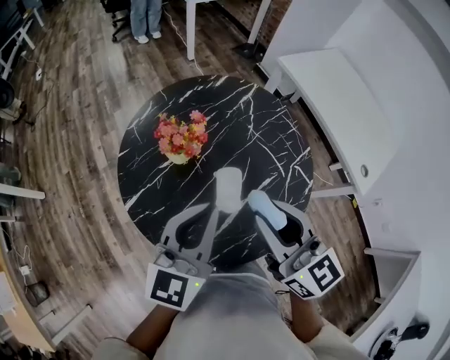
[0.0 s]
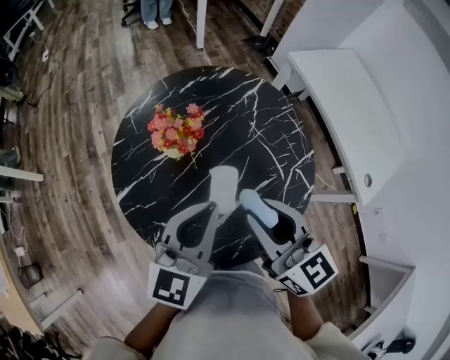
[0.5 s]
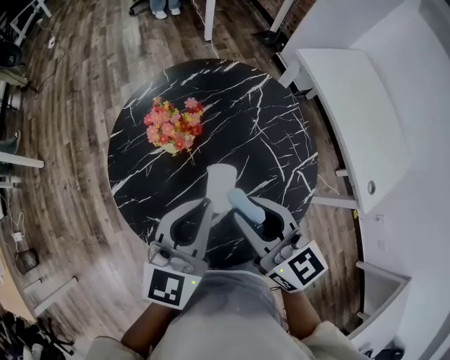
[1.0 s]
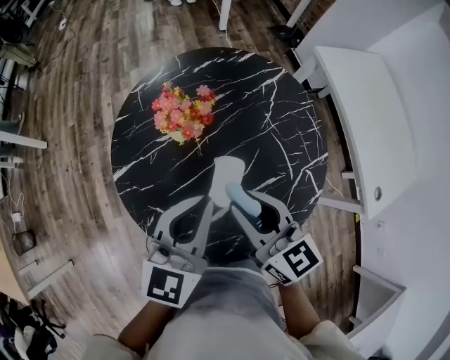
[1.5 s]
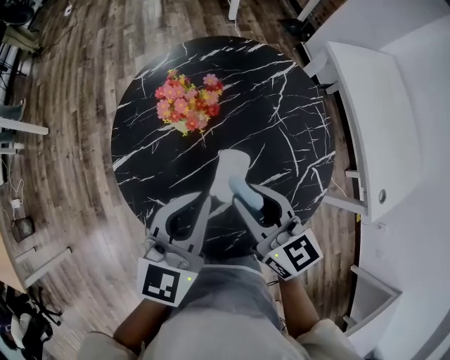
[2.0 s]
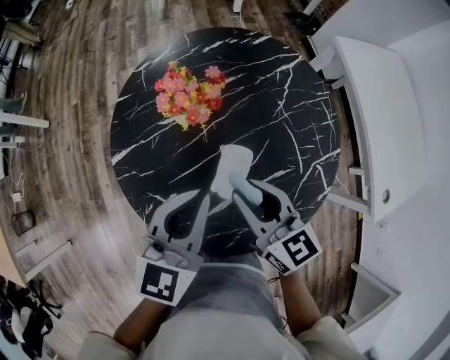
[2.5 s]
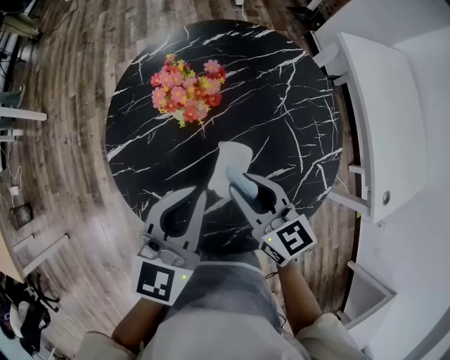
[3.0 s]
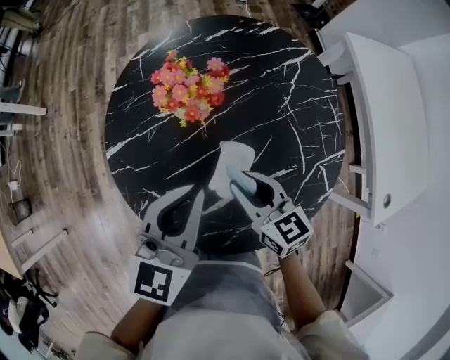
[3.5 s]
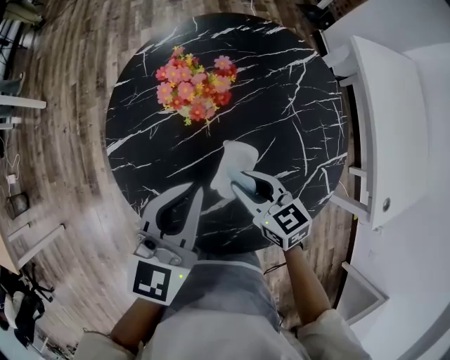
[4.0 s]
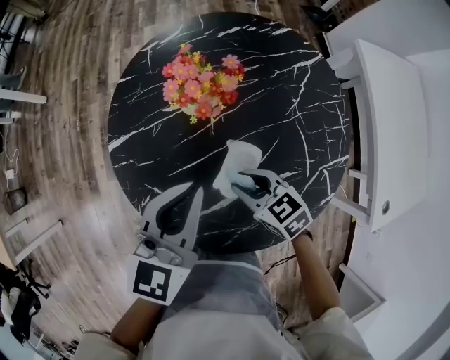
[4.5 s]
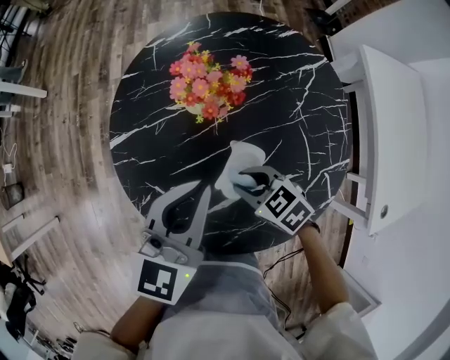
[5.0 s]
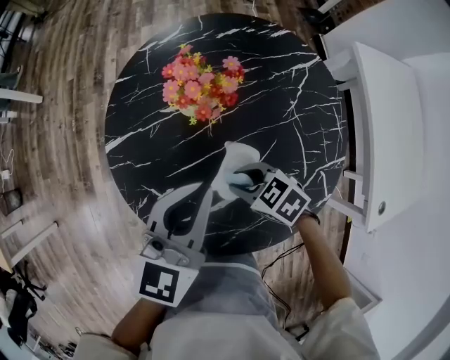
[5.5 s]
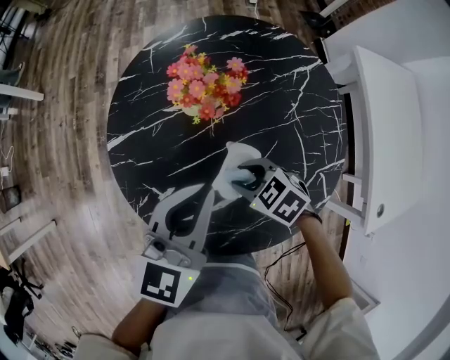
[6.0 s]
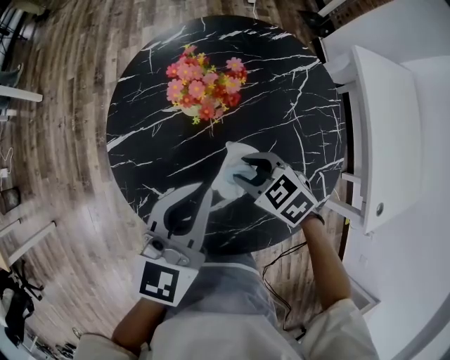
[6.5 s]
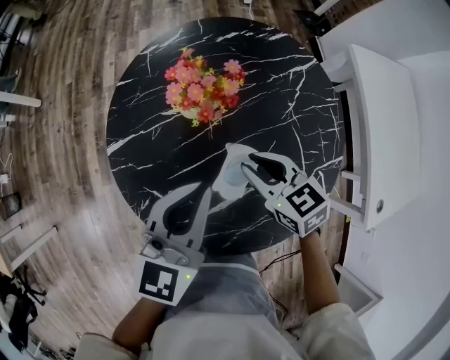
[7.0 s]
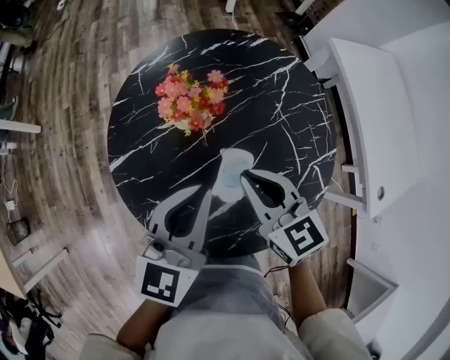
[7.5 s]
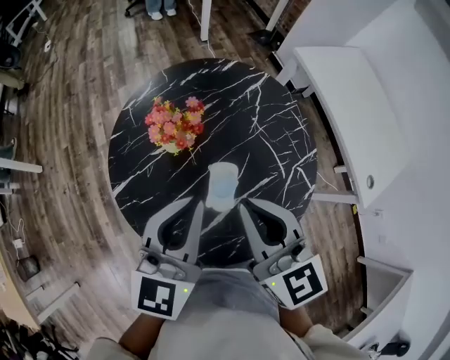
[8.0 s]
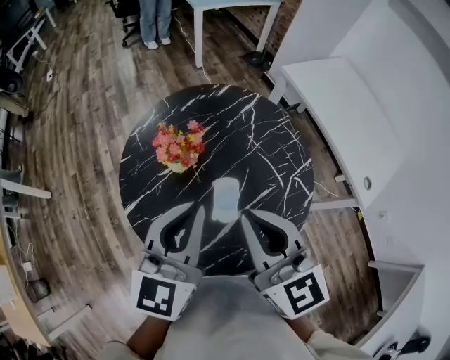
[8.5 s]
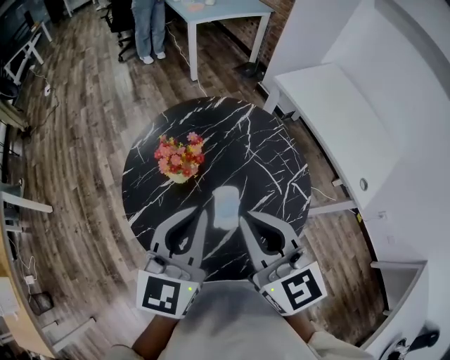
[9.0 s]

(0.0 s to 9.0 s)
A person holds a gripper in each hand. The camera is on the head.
0.0 s - 2.0 s: The left gripper shifts roughly 5 cm downward. Meanwhile the right gripper is displaced downward by about 15 cm, and changes its angle by some 20 degrees.
2.0 s - 4.5 s: The right gripper shifts some 15 cm downward, and changes its angle by about 40 degrees.
4.5 s - 7.0 s: The right gripper moves upward and forward, roughly 10 cm.
7.0 s - 9.0 s: The right gripper goes some 25 cm upward, angles its fingers upward, by approximately 30 degrees, and closes up; the left gripper moves upward, about 15 cm.

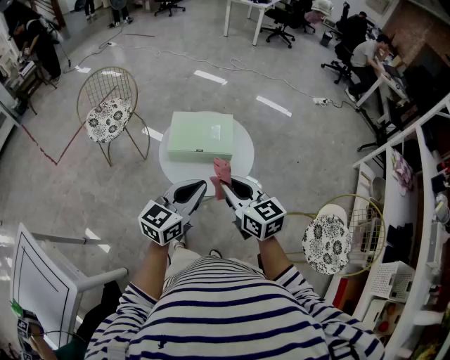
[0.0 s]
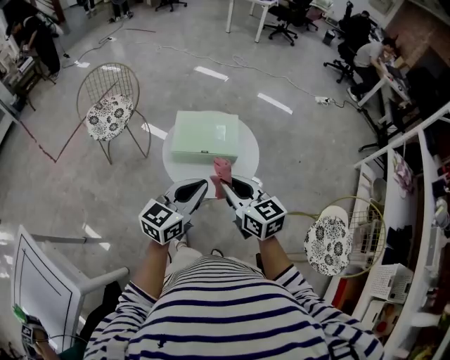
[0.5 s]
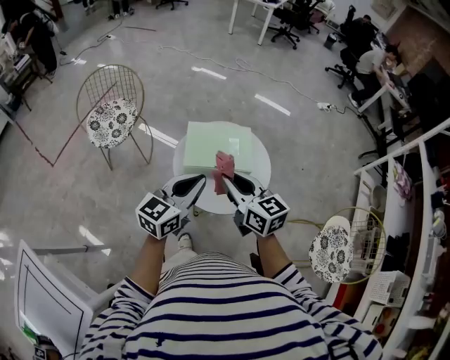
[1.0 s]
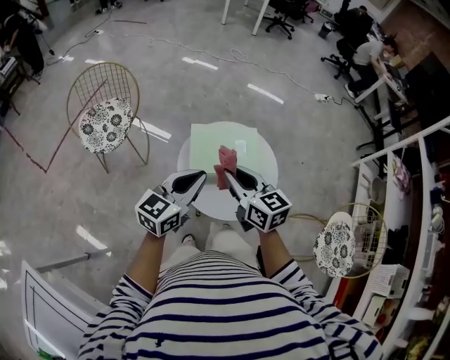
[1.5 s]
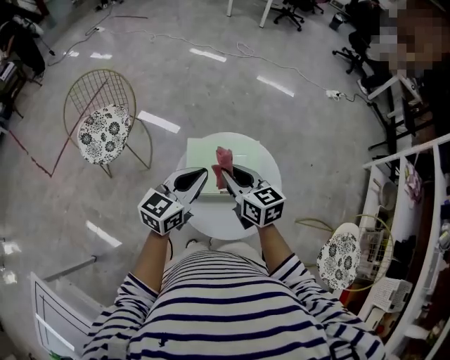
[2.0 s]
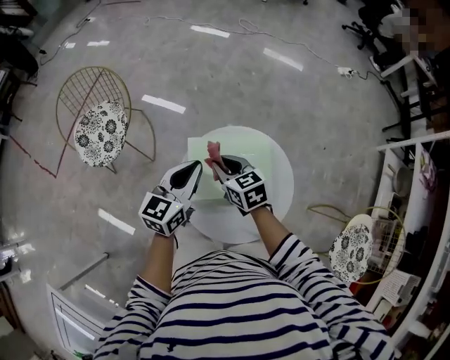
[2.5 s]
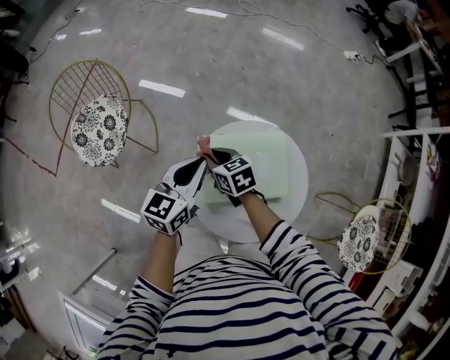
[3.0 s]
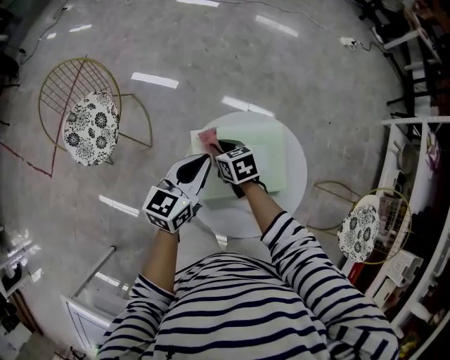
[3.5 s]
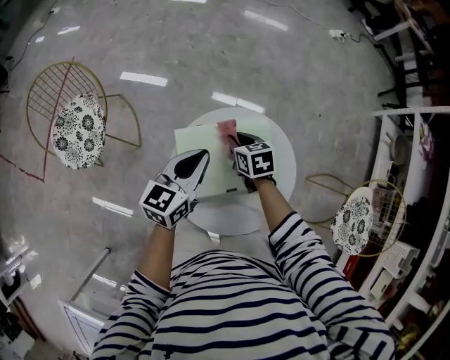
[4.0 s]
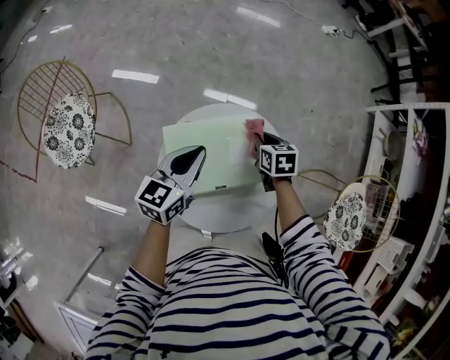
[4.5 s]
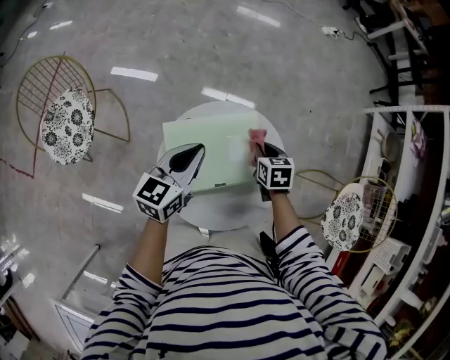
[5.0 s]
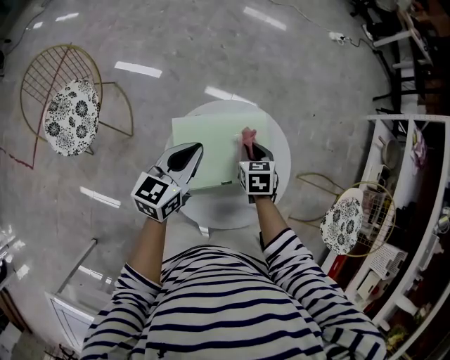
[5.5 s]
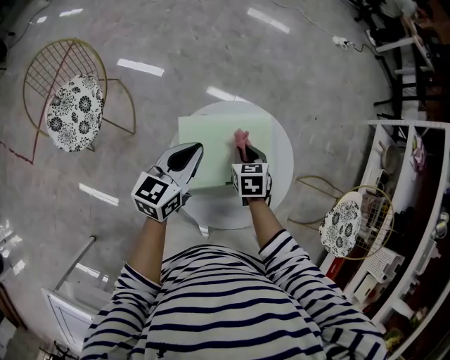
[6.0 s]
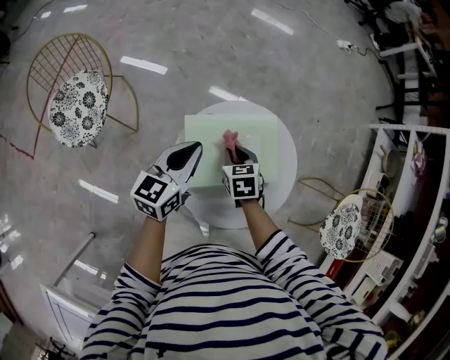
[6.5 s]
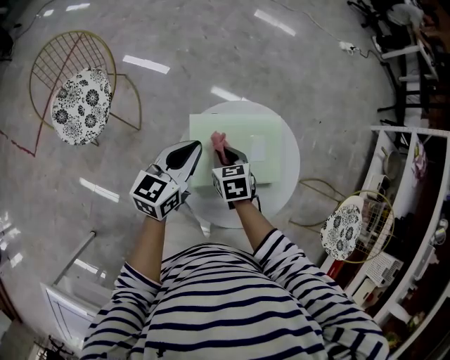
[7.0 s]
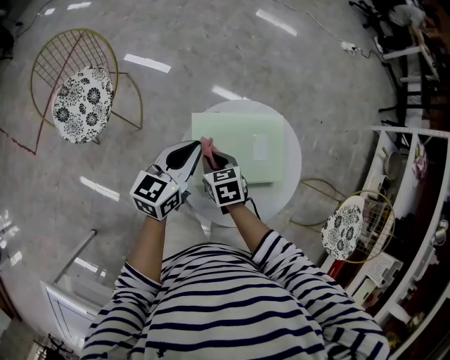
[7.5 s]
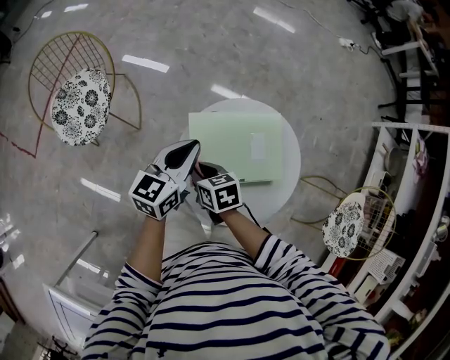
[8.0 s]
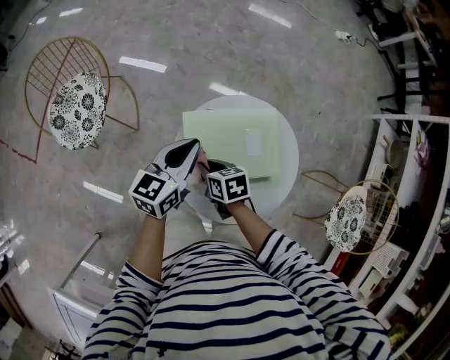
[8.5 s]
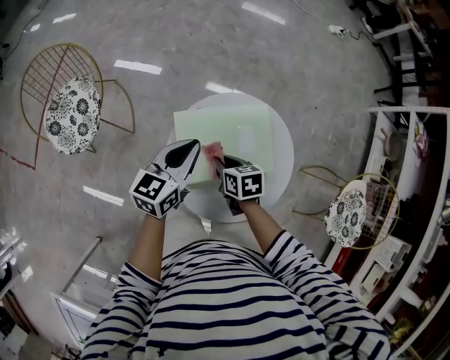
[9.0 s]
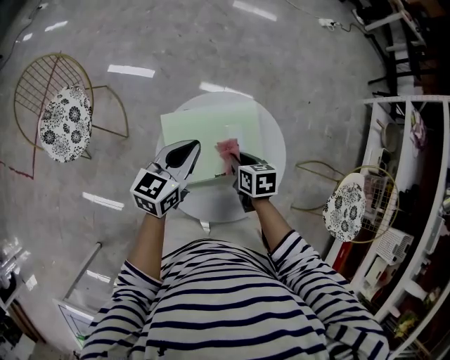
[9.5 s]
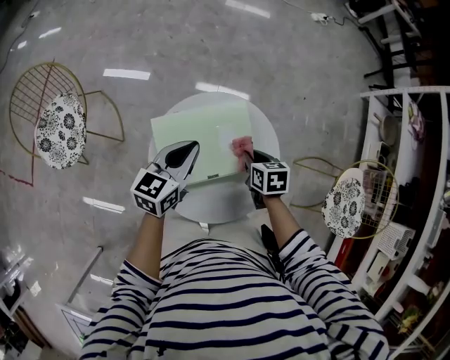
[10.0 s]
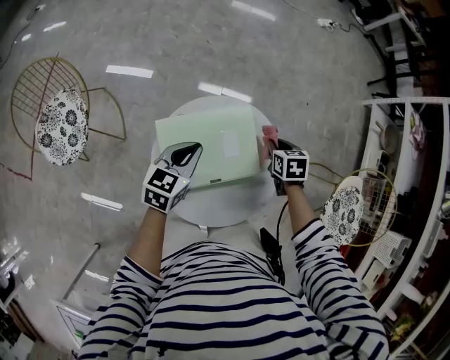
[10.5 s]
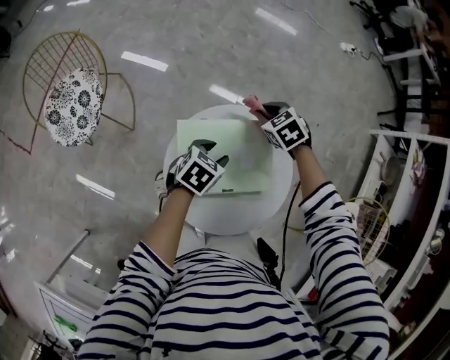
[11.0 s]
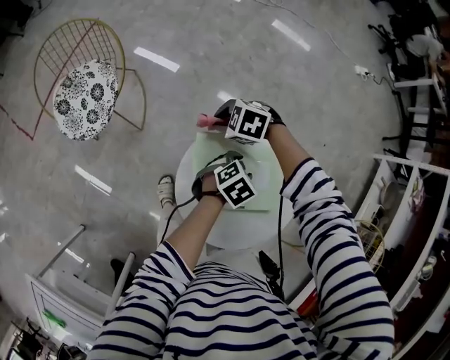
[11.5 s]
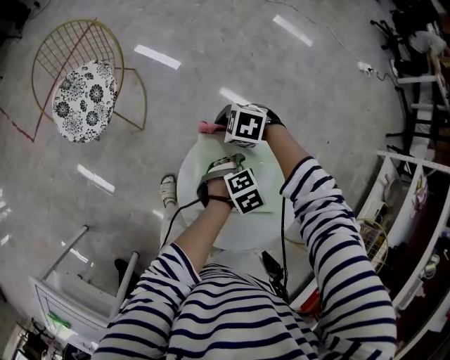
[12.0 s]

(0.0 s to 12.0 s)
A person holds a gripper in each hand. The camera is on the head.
0.0 s - 2.0 s: Both grippers move forward and to the left, roughly 30 cm.
2.0 s - 4.0 s: The left gripper is displaced forward and downward by some 15 cm, while the right gripper goes some 25 cm downward and forward, and swivels roughly 30 degrees.
4.0 s - 6.0 s: The right gripper shifts some 5 cm backward, and reaches about 15 cm to the right, then returns.
6.0 s - 8.0 s: The right gripper travels to the left and backward by some 20 cm, and swivels about 30 degrees.
8.0 s - 10.0 s: The right gripper travels to the right by approximately 30 cm, and rotates some 20 degrees. The left gripper travels to the right by roughly 10 cm.
10.0 s - 12.0 s: The left gripper is displaced downward by roughly 15 cm, tilts its fingers some 40 degrees downward, and opens up, while the right gripper moves approximately 30 cm, and twists roughly 80 degrees counterclockwise, seen from behind.

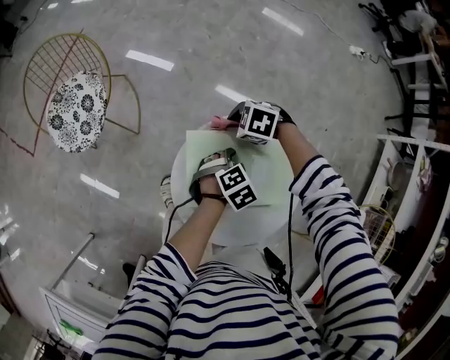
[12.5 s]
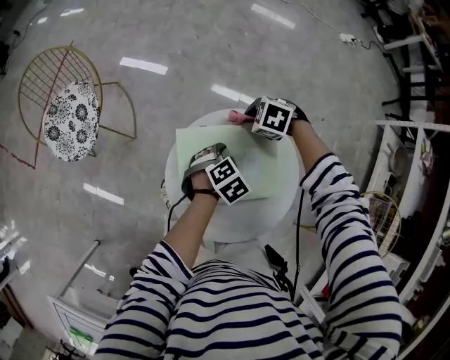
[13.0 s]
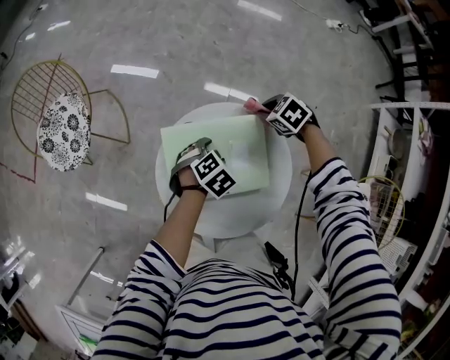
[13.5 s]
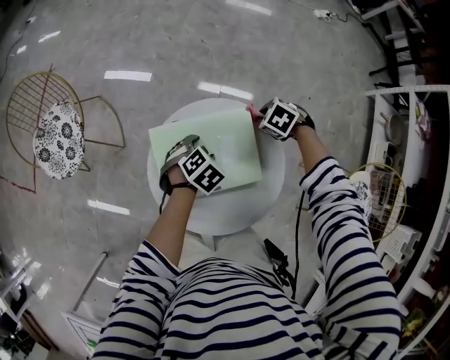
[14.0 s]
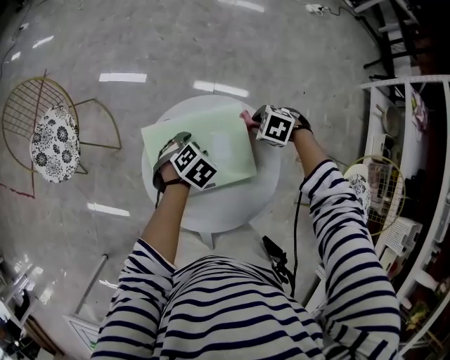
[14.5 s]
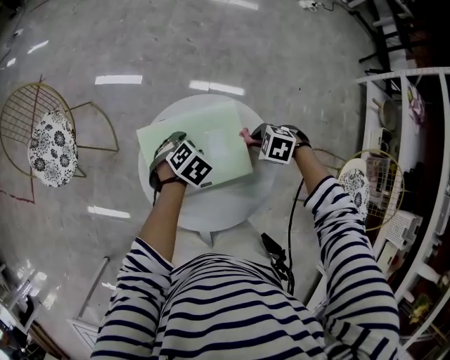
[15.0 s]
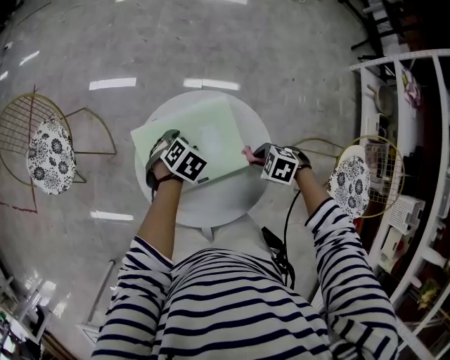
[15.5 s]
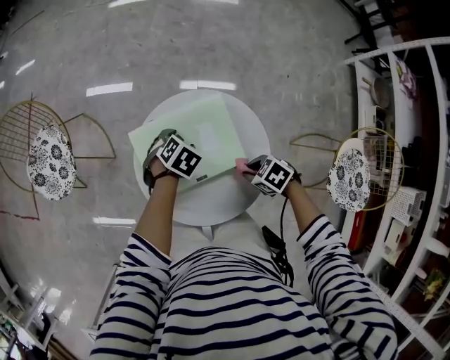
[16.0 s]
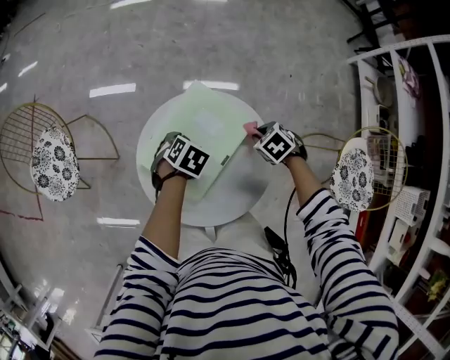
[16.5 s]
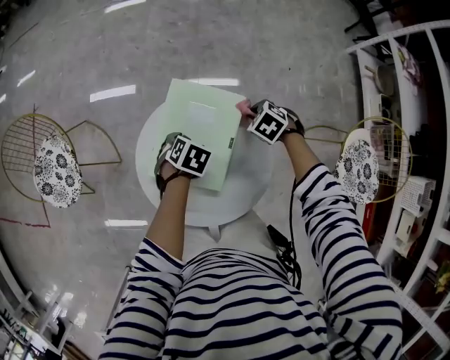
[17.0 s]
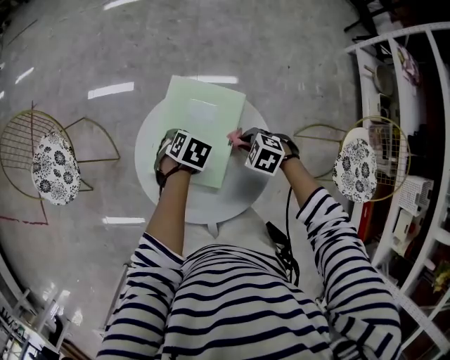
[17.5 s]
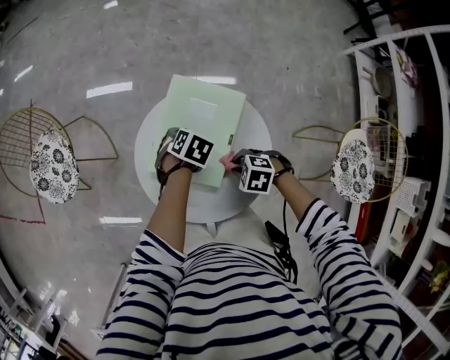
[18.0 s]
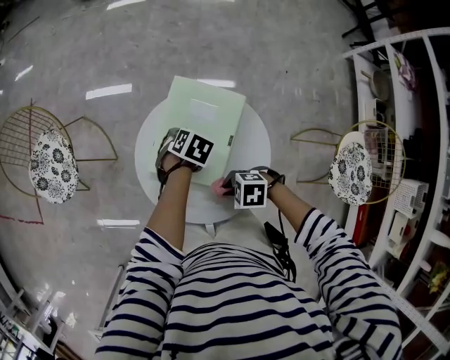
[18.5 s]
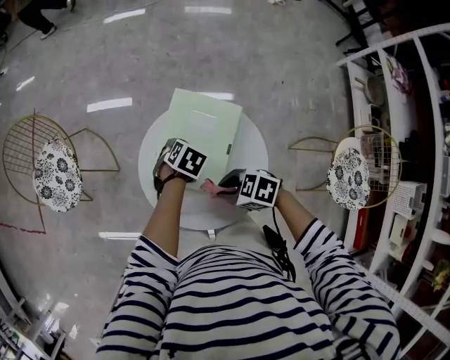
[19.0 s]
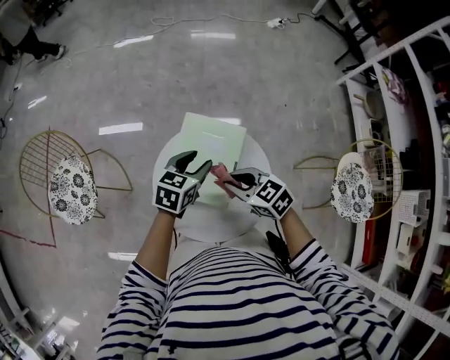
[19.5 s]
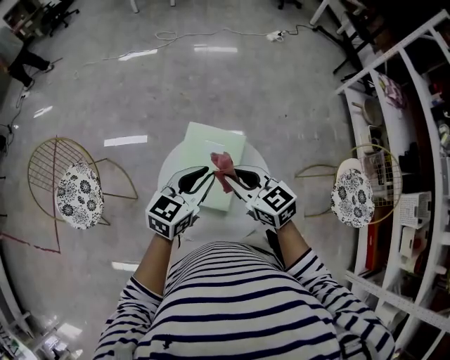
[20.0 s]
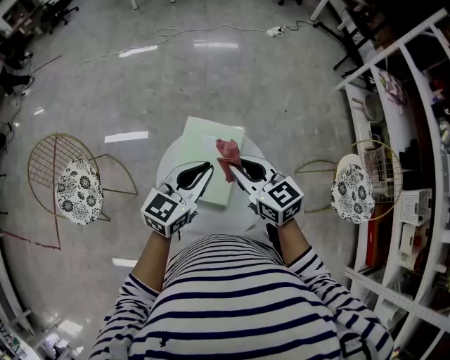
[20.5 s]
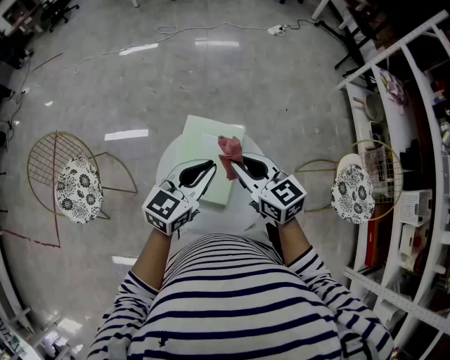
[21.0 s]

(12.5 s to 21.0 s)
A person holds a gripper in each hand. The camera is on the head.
12.5 s - 14.5 s: The right gripper moves some 25 cm, and swivels roughly 20 degrees.
14.5 s - 16.5 s: The right gripper changes its angle by roughly 30 degrees.
16.5 s - 19.0 s: The right gripper ends up about 25 cm from where it was, and tilts its fingers roughly 30 degrees upward.
19.0 s - 21.0 s: Both grippers move upward, some 25 cm. The left gripper points its fingers roughly 60 degrees further upward, and closes up. The right gripper swivels approximately 60 degrees.
